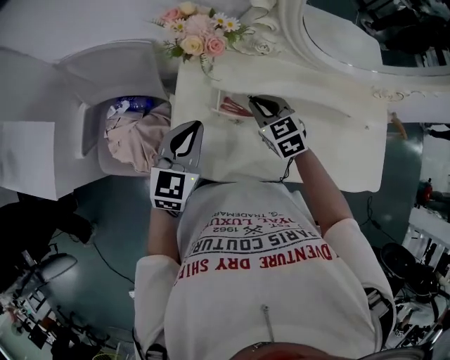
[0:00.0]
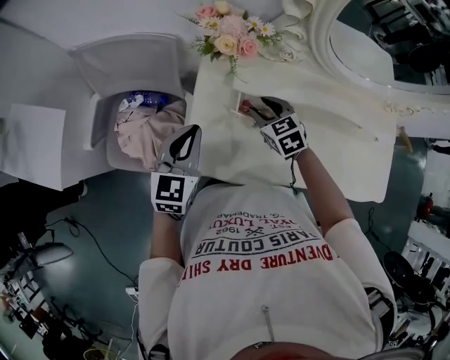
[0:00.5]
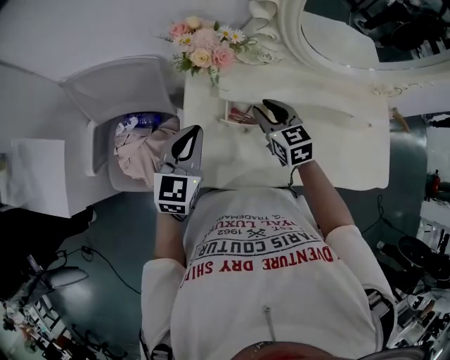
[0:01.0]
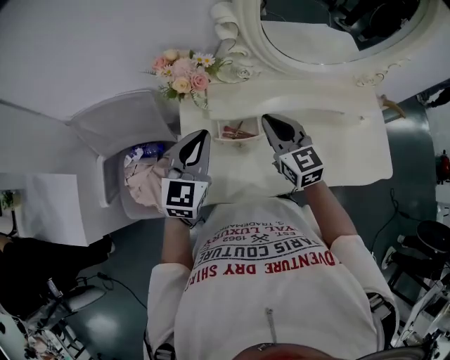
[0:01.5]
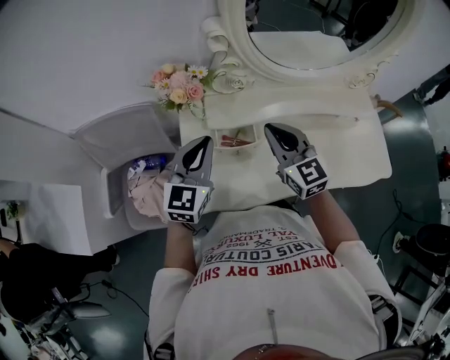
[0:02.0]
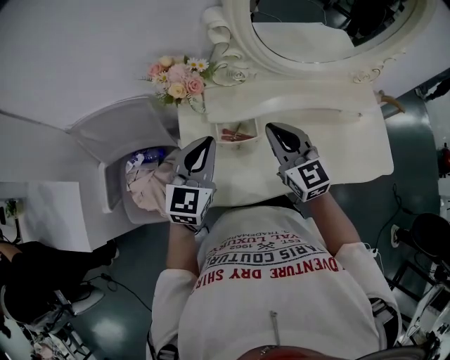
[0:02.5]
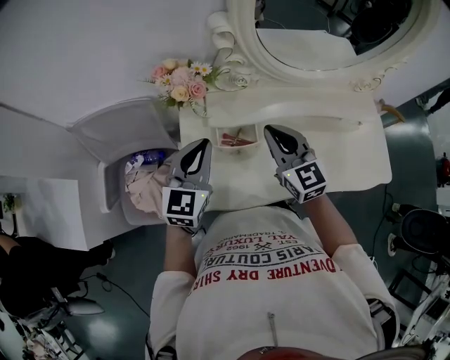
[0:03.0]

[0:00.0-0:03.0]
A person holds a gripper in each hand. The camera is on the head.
0:00.0 to 0:01.5: The right gripper is displaced upward by roughly 10 cm, rotates roughly 30 degrees, and opens, then closes once more. Meanwhile the left gripper travels upward by about 5 cm, and travels to the left and back again, about 5 cm each way.
0:01.5 to 0:03.0: The grippers make only small movements.

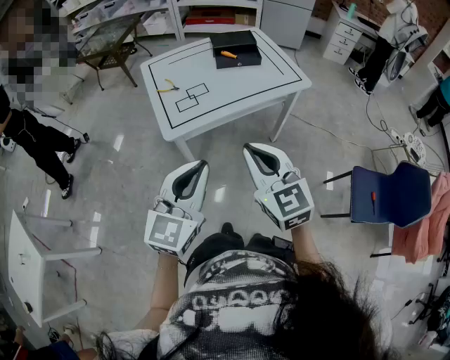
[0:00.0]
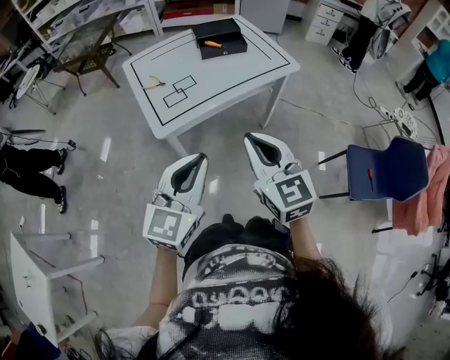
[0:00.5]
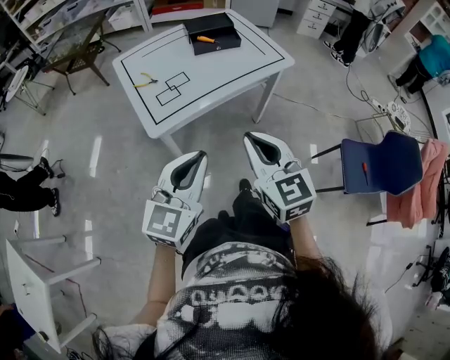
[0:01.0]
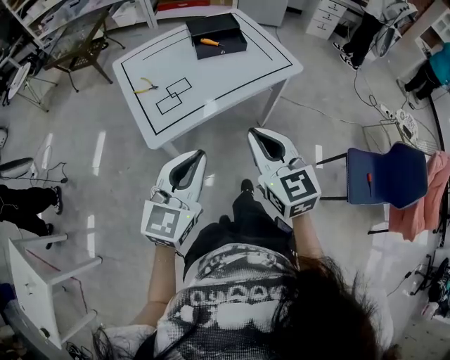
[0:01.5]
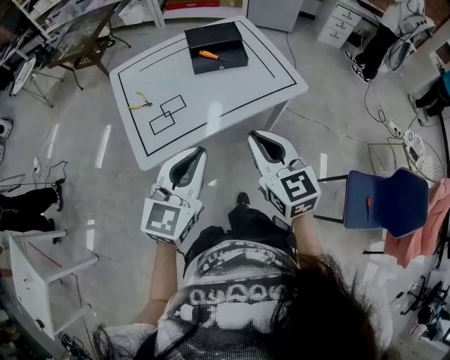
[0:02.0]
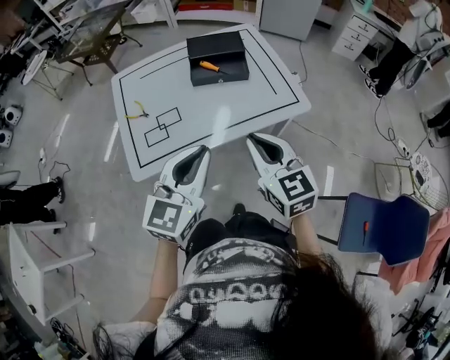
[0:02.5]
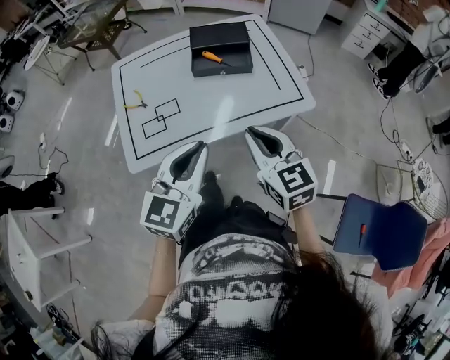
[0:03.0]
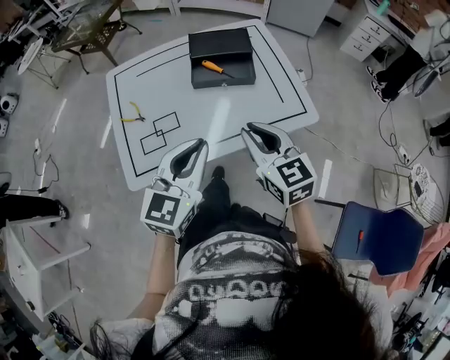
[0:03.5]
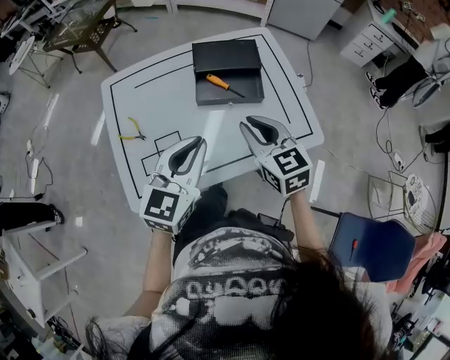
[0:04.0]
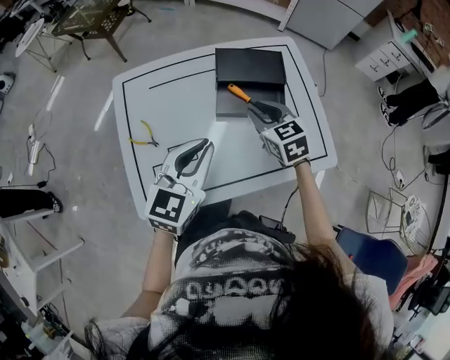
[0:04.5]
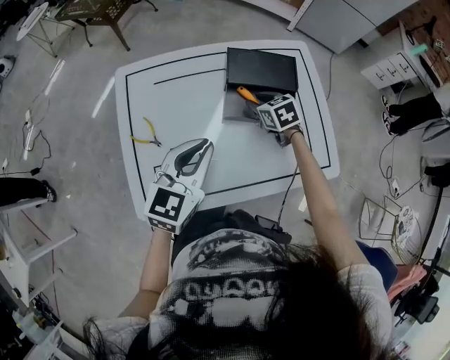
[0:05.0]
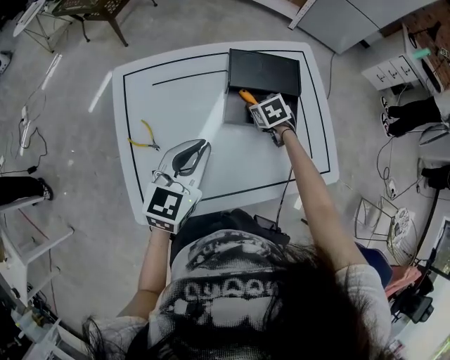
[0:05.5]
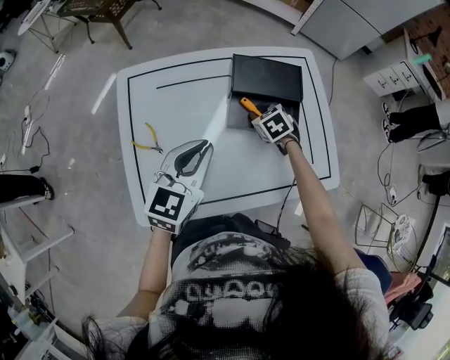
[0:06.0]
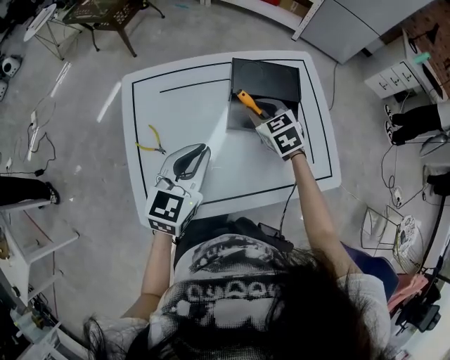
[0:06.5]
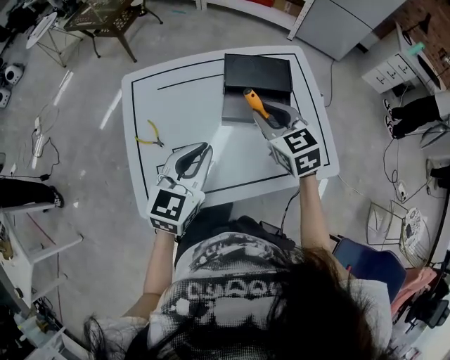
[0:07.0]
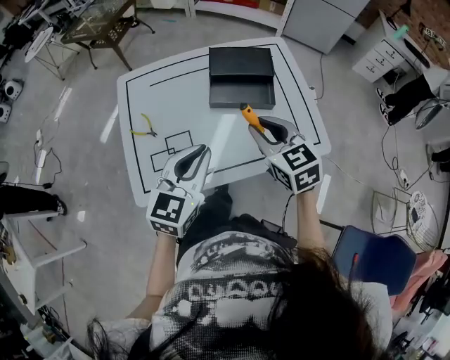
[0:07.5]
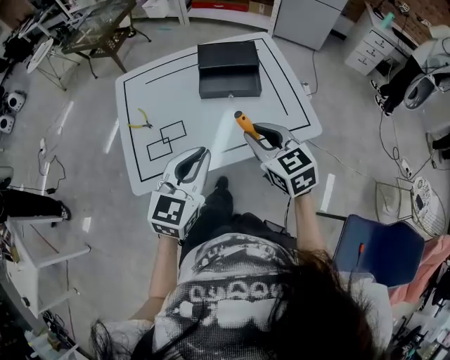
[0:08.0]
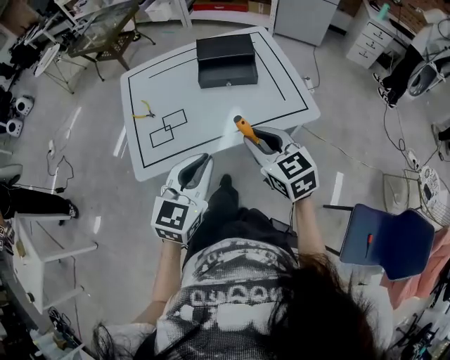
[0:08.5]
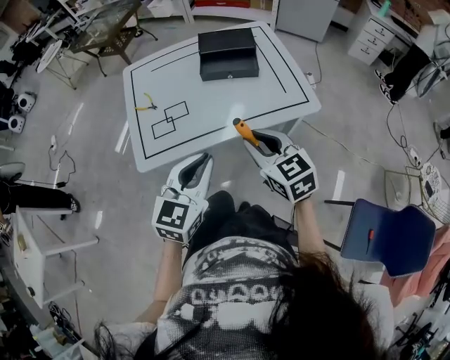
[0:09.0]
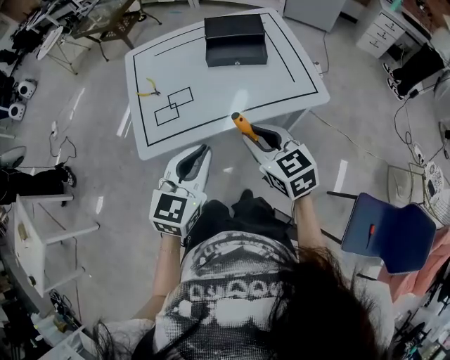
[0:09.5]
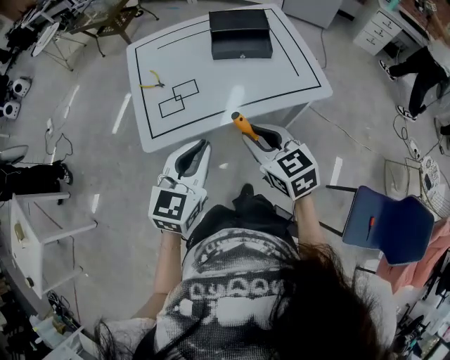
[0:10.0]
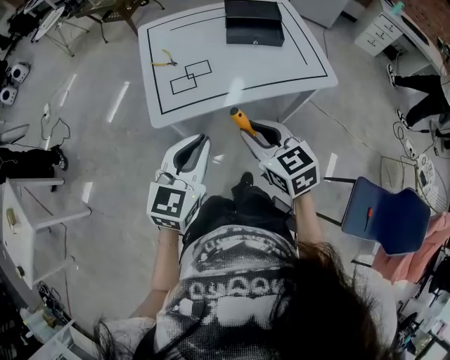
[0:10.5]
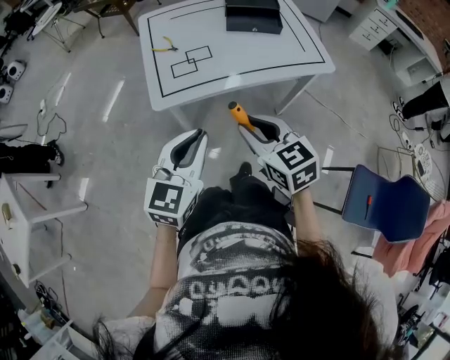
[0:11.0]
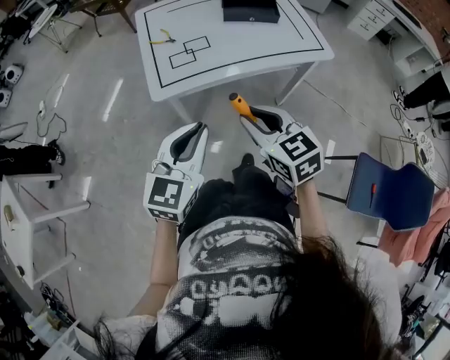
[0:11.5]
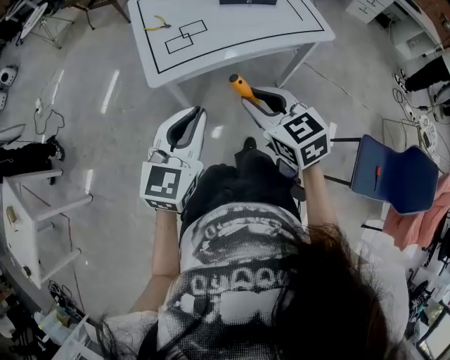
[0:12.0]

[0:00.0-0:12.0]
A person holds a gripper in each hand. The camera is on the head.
0:00.0 to 0:02.0: The two grippers go about 25 cm forward.
0:02.0 to 0:04.0: The two grippers go roughly 30 cm forward.
0:04.0 to 0:06.0: The left gripper travels forward and to the left by approximately 15 cm. The right gripper shifts about 30 cm forward and downward, and tips its fingers downward by about 40 degrees.
0:06.0 to 0:08.0: The right gripper goes roughly 40 cm backward and upward, and tilts its fingers approximately 30 degrees upward. Meanwhile the left gripper goes roughly 25 cm backward.
0:08.0 to 0:10.0: The grippers both shift backward and to the left by roughly 15 cm.
0:10.0 to 0:12.0: Both grippers move backward and to the left, some 20 cm.

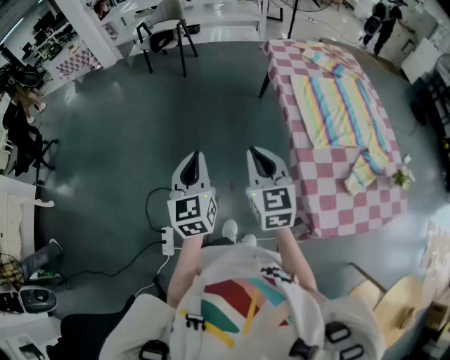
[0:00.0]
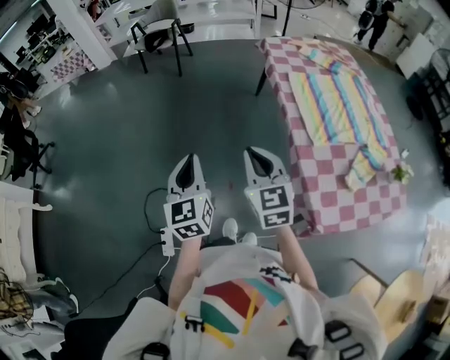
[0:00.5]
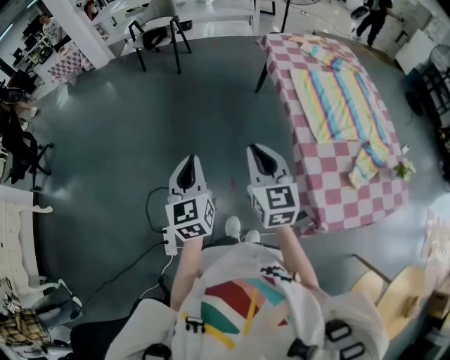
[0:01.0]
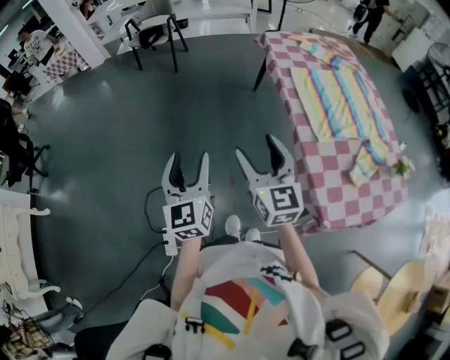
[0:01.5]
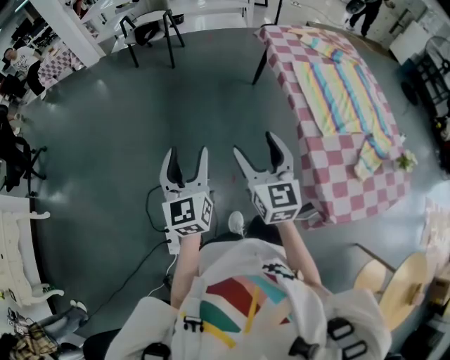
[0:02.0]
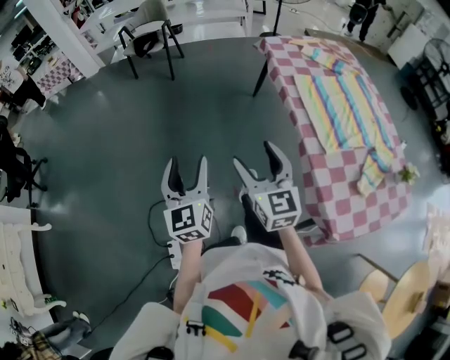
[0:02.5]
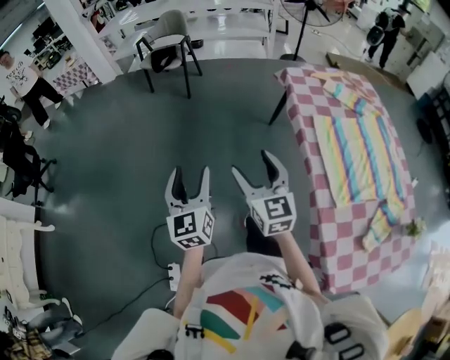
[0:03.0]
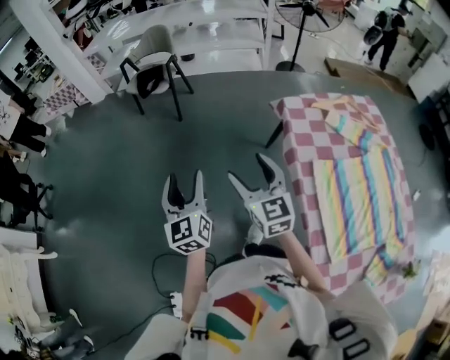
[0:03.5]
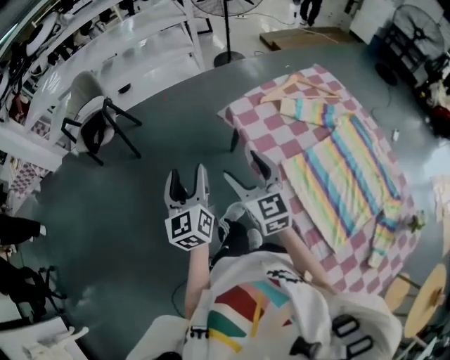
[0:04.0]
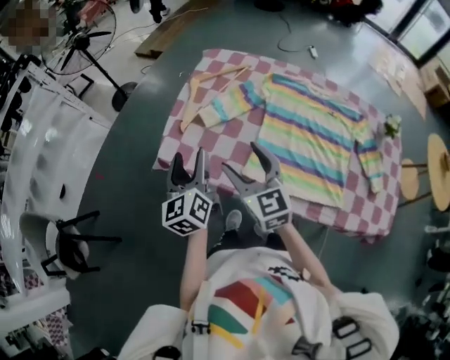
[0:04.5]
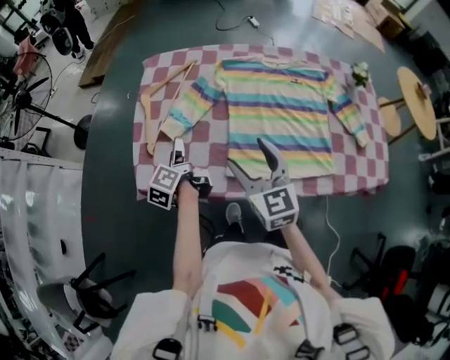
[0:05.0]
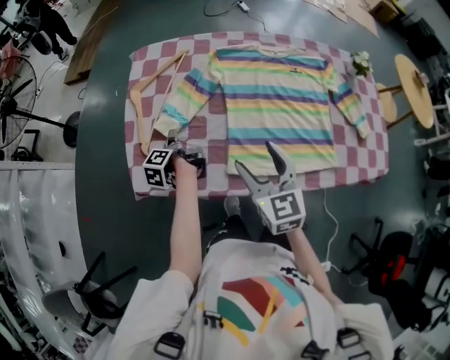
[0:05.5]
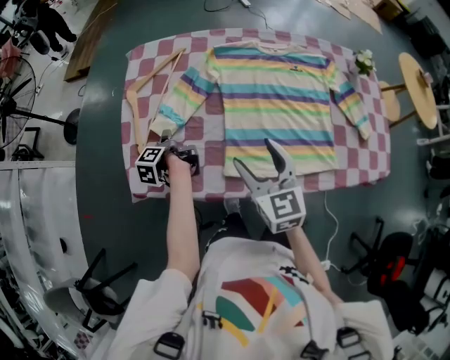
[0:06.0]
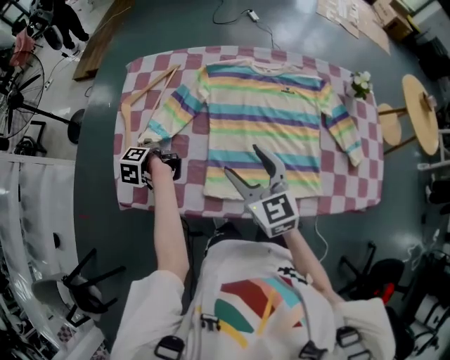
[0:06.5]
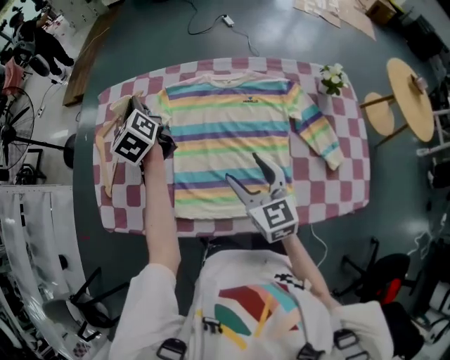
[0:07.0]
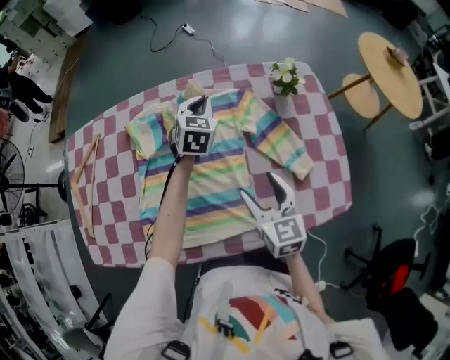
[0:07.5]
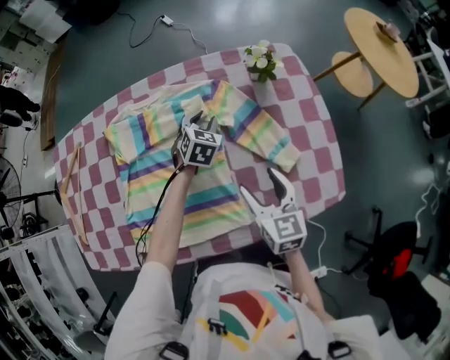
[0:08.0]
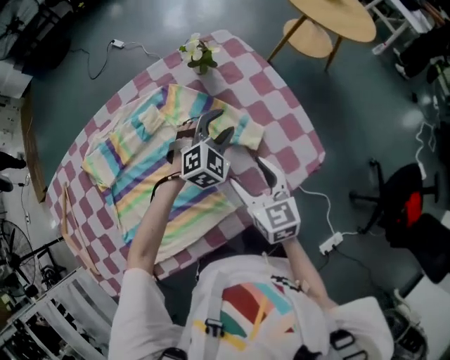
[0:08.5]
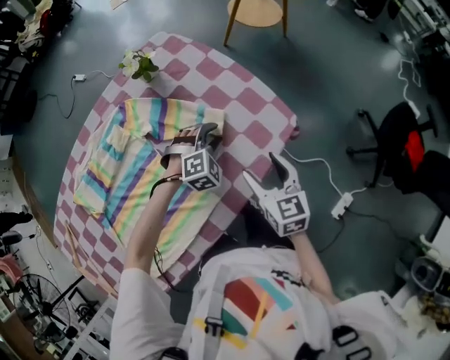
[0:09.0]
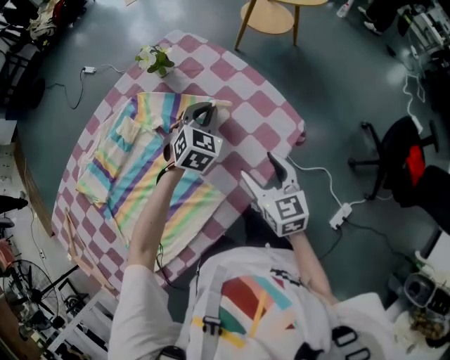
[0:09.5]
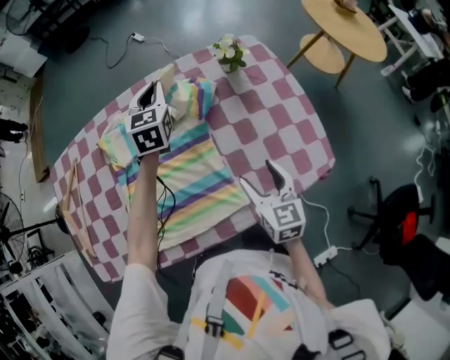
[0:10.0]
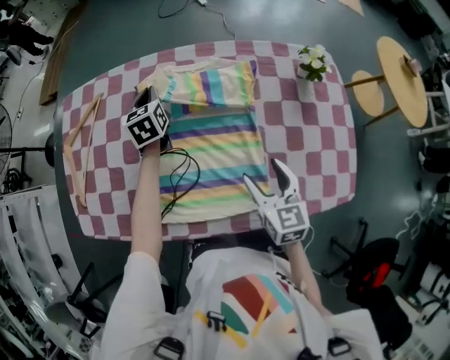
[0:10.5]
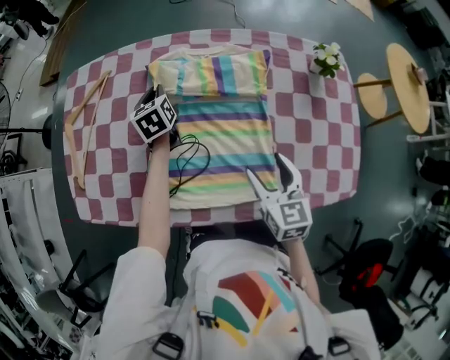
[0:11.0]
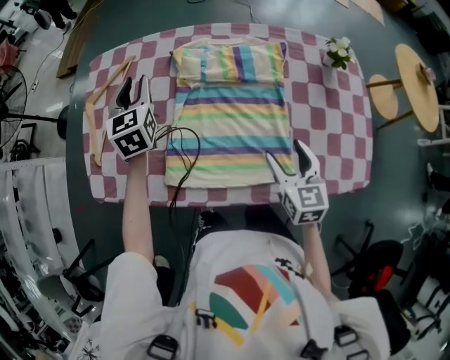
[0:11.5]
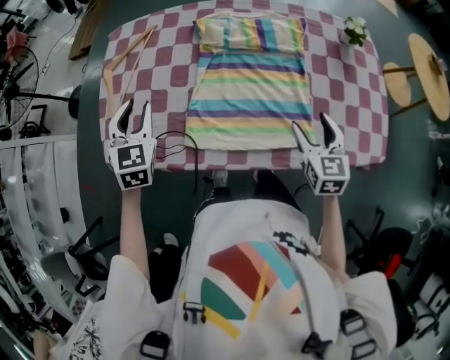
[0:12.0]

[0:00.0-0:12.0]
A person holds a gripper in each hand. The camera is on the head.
0:00.0 to 0:02.0: The two grippers go about 5 cm to the left. The left gripper opens up; the right gripper opens its fingers.
0:02.0 to 0:04.0: The pair of grippers is taken forward, some 60 cm.
0:04.0 to 0:06.0: The right gripper shifts by approximately 25 cm, and changes its angle by some 70 degrees; the left gripper ends up approximately 50 cm from where it was, and points its fingers roughly 30 degrees further downward.
0:06.0 to 0:08.0: Both grippers are carried about 50 cm. The left gripper rotates around the line of its fingers by roughly 120 degrees, clockwise from behind; the right gripper turns by some 20 degrees.
0:08.0 to 0:10.0: The left gripper swings up and down, some 20 cm each way, with 2 reversals, and turns by approximately 30 degrees.
0:10.0 to 0:12.0: The right gripper travels to the left by about 15 cm, and turns by approximately 20 degrees. Meanwhile the left gripper travels to the left and backward by some 50 cm, rotates roughly 30 degrees, and opens its fingers.
